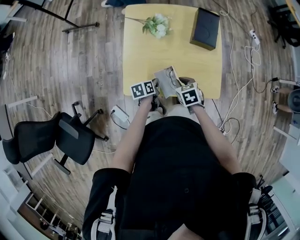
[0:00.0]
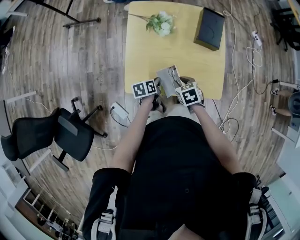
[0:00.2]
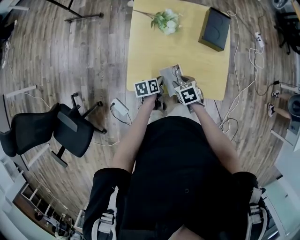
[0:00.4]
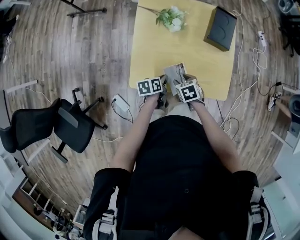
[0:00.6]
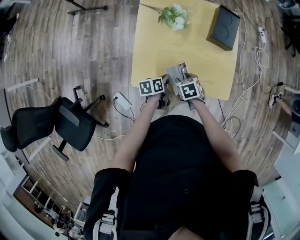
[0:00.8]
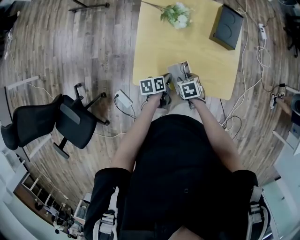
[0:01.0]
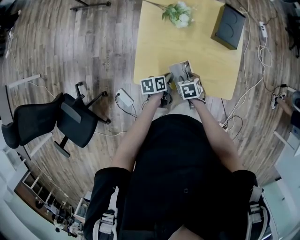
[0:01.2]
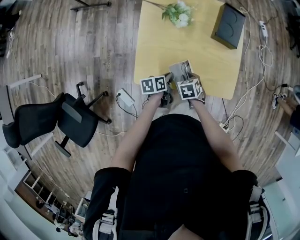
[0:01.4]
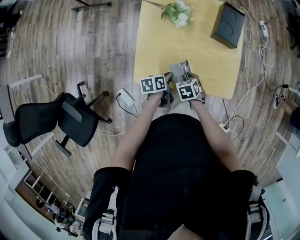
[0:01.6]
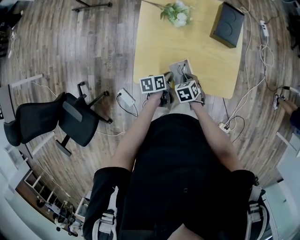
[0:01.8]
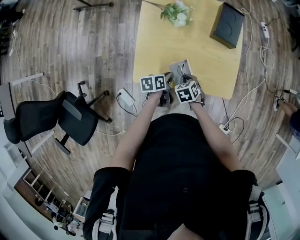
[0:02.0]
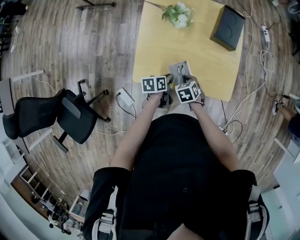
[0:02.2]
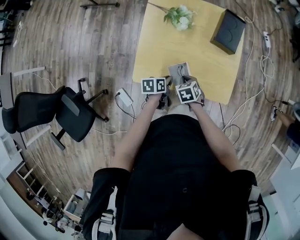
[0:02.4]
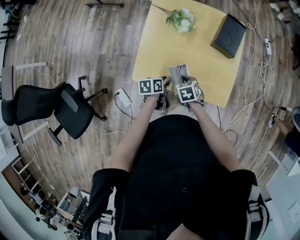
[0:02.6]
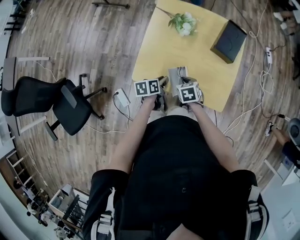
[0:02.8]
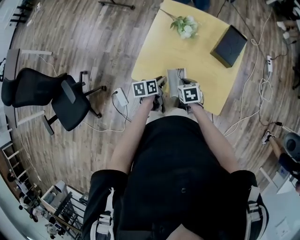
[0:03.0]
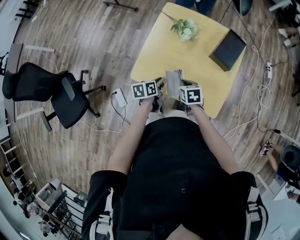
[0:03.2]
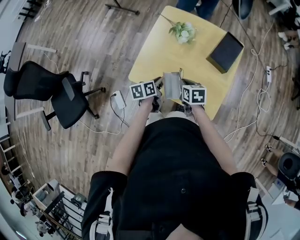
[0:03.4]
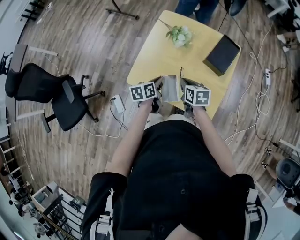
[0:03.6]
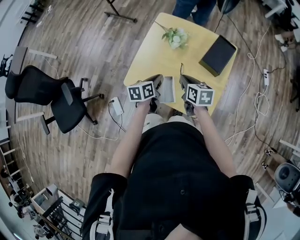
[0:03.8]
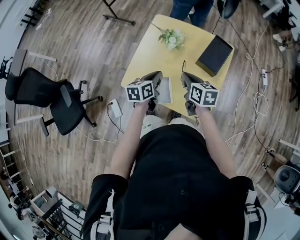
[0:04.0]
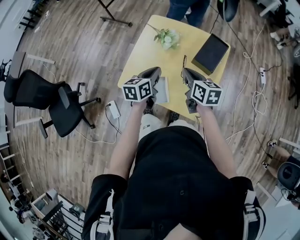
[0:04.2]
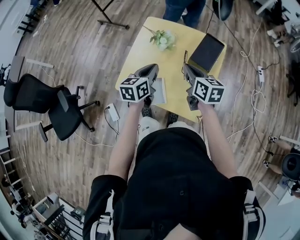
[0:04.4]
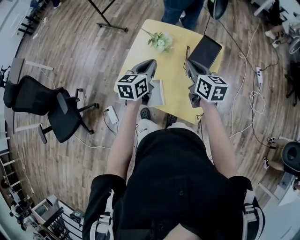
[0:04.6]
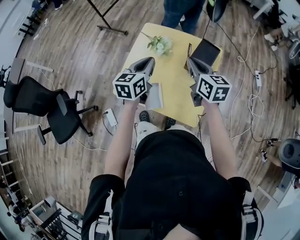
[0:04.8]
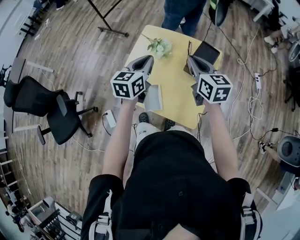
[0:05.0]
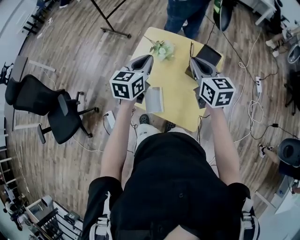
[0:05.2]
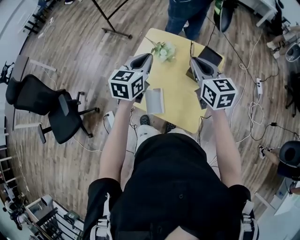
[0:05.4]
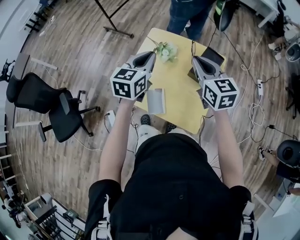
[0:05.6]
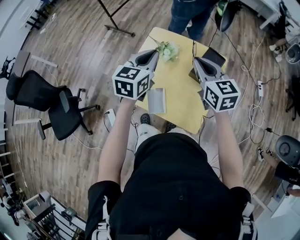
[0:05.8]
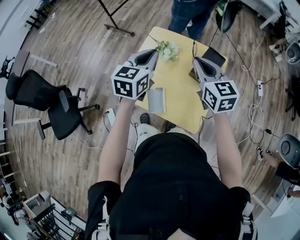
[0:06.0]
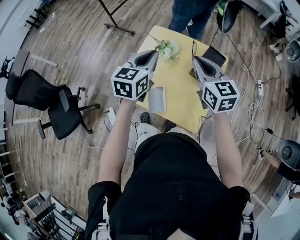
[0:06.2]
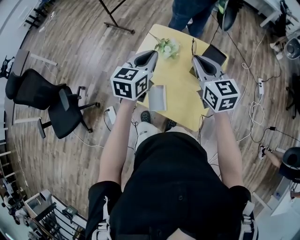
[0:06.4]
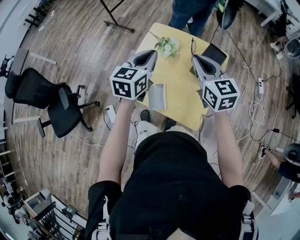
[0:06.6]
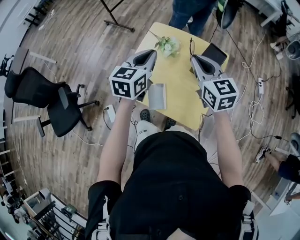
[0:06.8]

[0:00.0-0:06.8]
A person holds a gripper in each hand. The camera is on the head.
0:00.0 to 0:01.4: The right gripper shifts roughly 10 cm downward, and opens and closes again.
0:01.4 to 0:02.8: The right gripper heads upward, covering some 5 cm.
0:02.8 to 0:04.0: Both grippers travel together upward and to the right, some 20 cm. The right gripper swivels about 30 degrees. The left gripper turns by roughly 20 degrees.
0:04.0 to 0:05.4: Both grippers move upward, about 15 cm. The right gripper turns by approximately 30 degrees; the left gripper swivels roughly 30 degrees.
0:05.4 to 0:06.8: The grippers stay close to where they were, moving slightly.

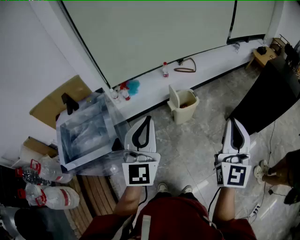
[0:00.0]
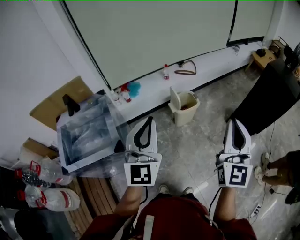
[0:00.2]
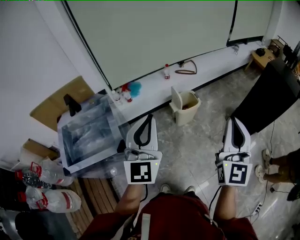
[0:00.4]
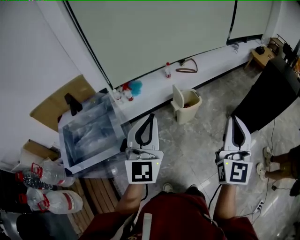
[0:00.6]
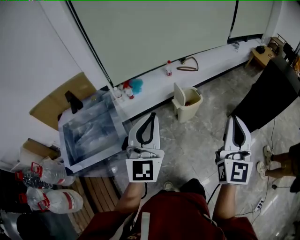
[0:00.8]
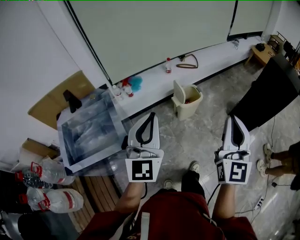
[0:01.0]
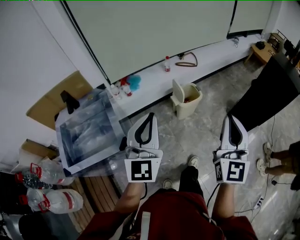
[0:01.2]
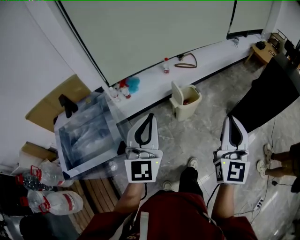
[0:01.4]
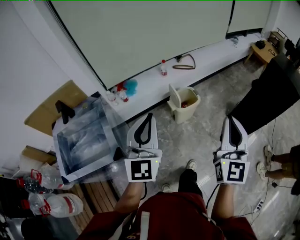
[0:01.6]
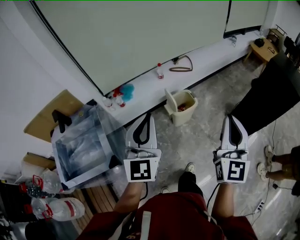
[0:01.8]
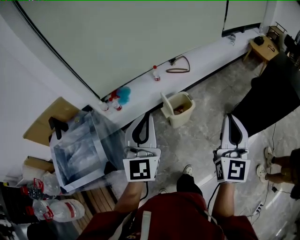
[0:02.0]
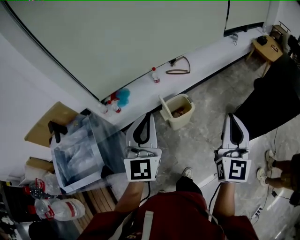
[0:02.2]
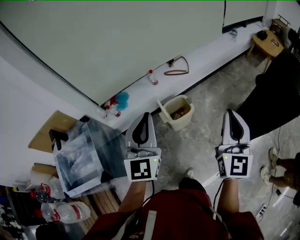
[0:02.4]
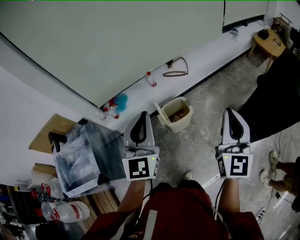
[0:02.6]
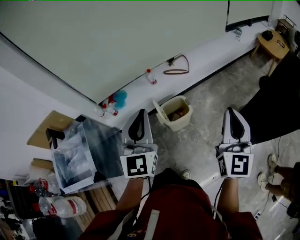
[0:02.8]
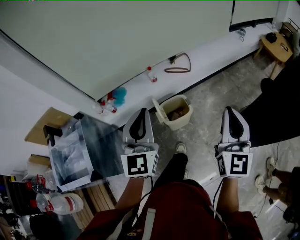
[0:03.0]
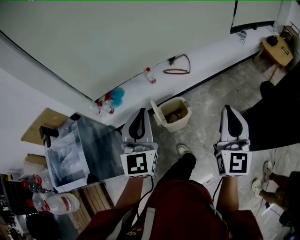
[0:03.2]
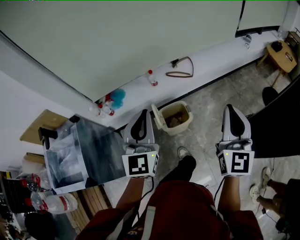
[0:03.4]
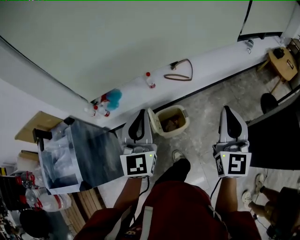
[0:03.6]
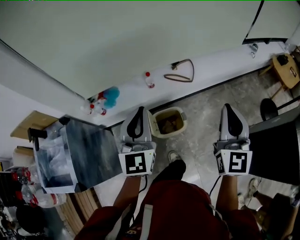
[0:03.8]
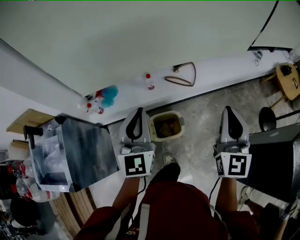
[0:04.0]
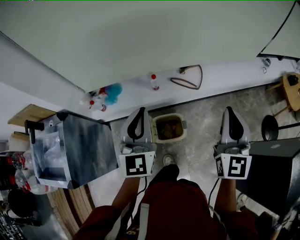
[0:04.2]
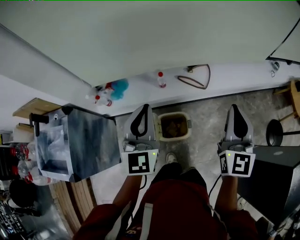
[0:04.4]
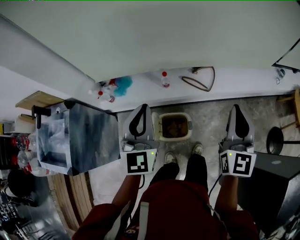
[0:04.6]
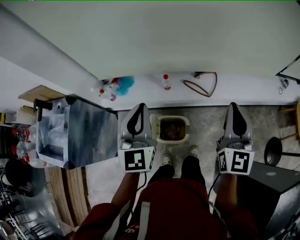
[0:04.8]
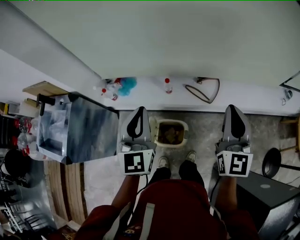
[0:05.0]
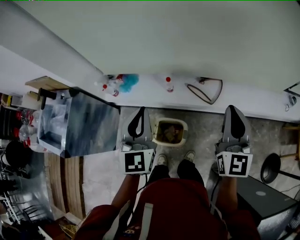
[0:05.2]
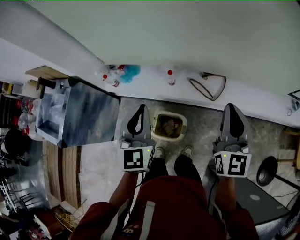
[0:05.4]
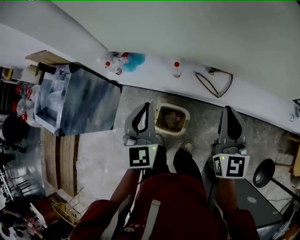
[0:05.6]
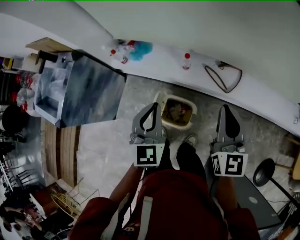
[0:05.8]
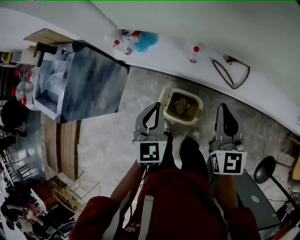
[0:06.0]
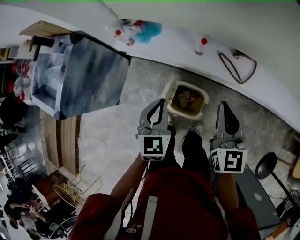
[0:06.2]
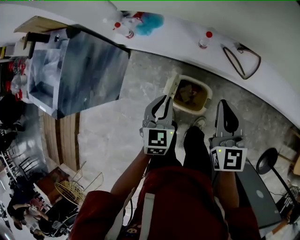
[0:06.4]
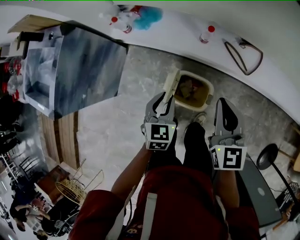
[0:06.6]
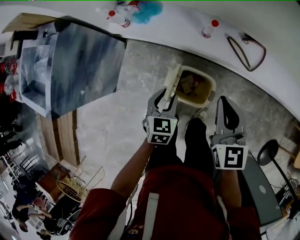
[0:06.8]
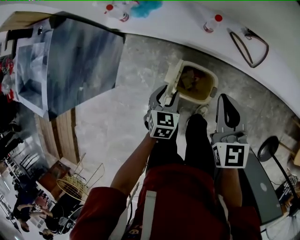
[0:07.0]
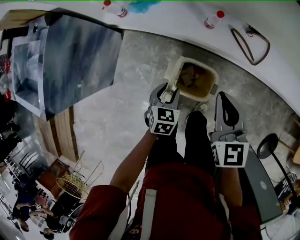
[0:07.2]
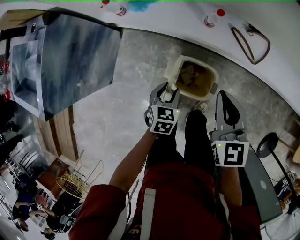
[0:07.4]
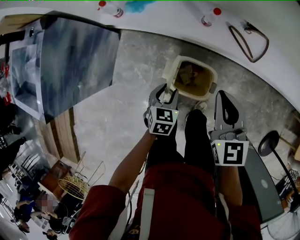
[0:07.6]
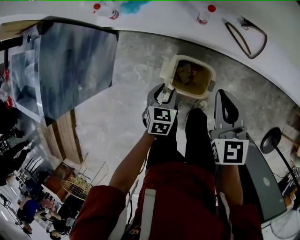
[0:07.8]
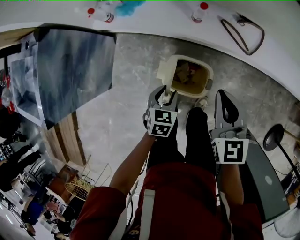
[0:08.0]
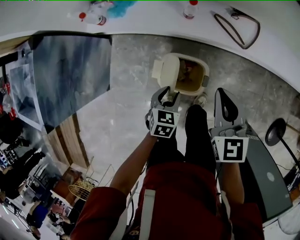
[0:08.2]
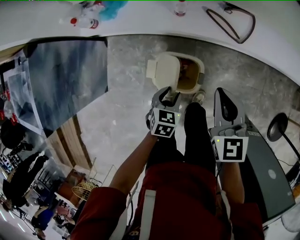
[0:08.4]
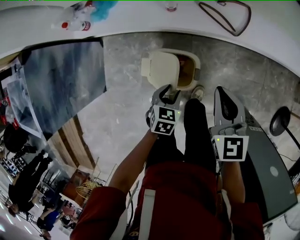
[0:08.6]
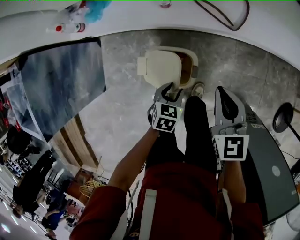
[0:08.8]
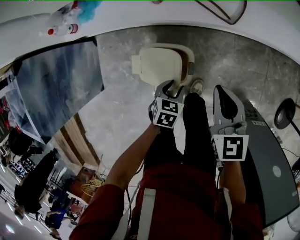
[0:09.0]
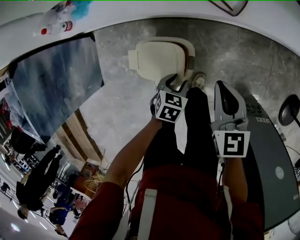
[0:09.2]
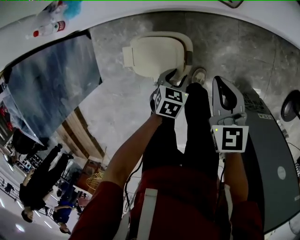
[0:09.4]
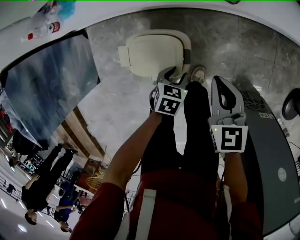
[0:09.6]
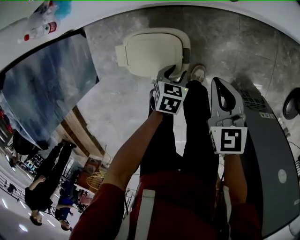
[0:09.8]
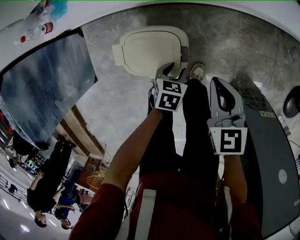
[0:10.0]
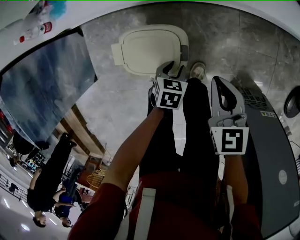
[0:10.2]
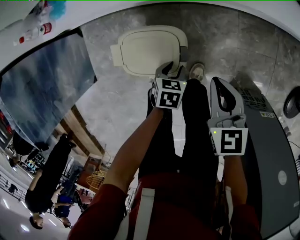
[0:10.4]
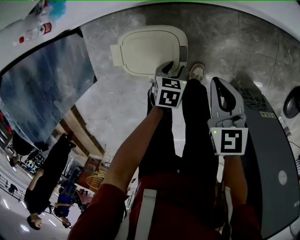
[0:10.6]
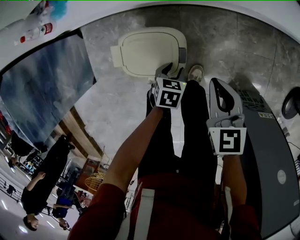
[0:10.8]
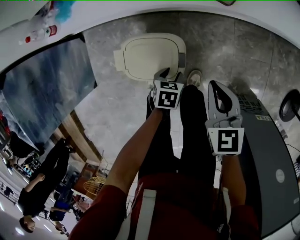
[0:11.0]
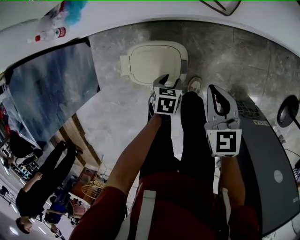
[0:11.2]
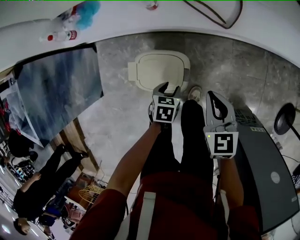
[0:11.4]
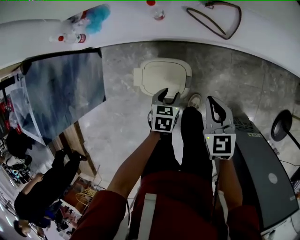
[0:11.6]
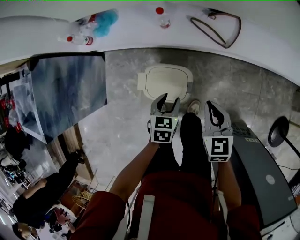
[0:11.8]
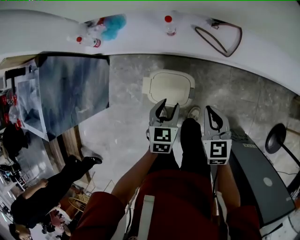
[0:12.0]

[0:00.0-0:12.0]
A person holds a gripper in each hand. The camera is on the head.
0:00.0 to 0:01.6: Both grippers travel together forward, approximately 5 cm.
0:01.6 to 0:03.0: Both grippers move forward and to the right, approximately 30 cm.
0:03.0 to 0:04.4: The grippers both shift forward by approximately 30 cm.
0:04.4 to 0:06.0: The two grippers go approximately 15 cm downward. The left gripper changes its angle by some 30 degrees, while the right gripper turns by roughly 40 degrees.
0:06.0 to 0:07.6: The right gripper goes some 20 cm downward and to the left. Meanwhile the left gripper goes about 30 cm downward, swivels approximately 30 degrees, and opens up.
0:07.6 to 0:09.0: Both grippers move to the right and downward, about 20 cm. The left gripper rotates roughly 20 degrees.
0:09.0 to 0:10.4: Both grippers move downward, roughly 10 cm.
0:10.4 to 0:12.0: The right gripper travels upward and to the left by some 15 cm; the left gripper goes approximately 25 cm upward, and turns by about 30 degrees.

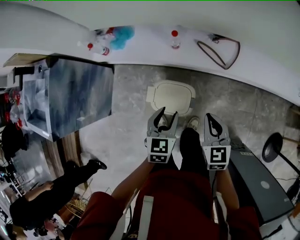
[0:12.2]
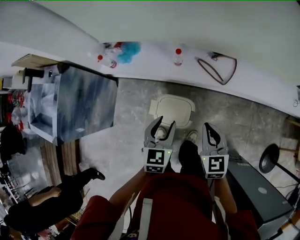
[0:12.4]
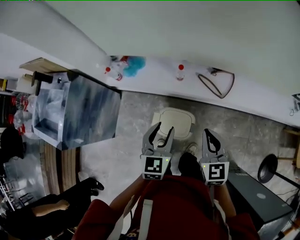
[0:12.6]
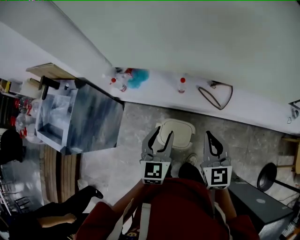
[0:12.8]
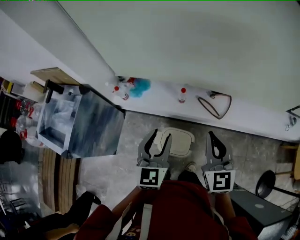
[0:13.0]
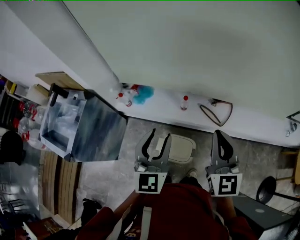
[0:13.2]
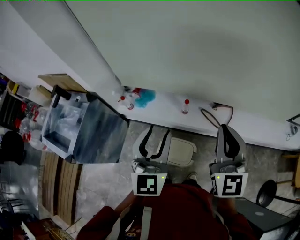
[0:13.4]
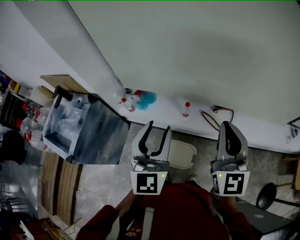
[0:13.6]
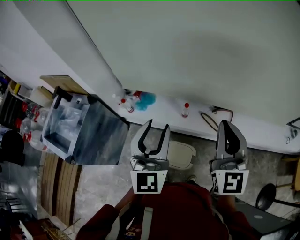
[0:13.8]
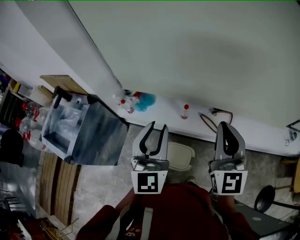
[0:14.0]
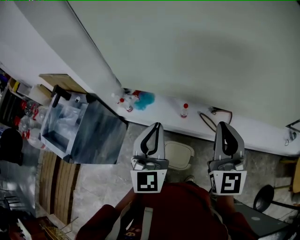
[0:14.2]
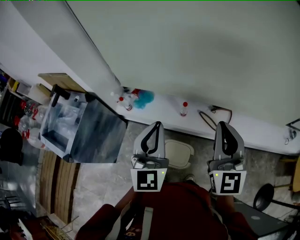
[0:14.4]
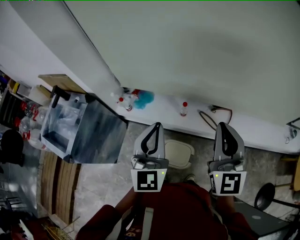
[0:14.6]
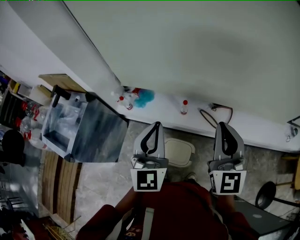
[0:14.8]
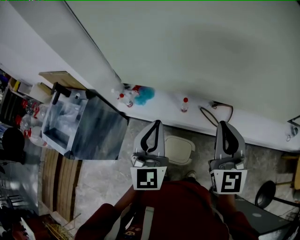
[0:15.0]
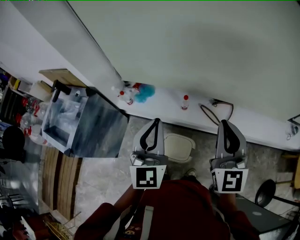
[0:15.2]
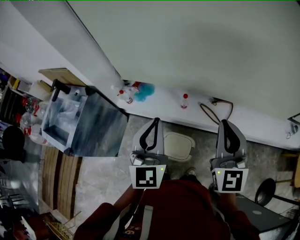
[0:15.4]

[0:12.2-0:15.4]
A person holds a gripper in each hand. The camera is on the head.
0:12.2 to 0:13.8: Both grippers move upward, approximately 40 cm. The left gripper tilts its fingers about 40 degrees upward. The right gripper tips its fingers upward by some 40 degrees.
0:13.8 to 0:15.4: The left gripper closes.

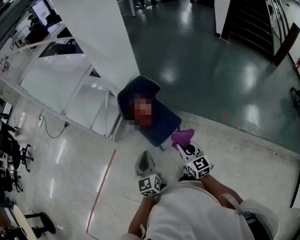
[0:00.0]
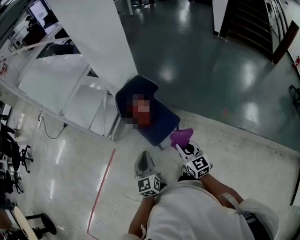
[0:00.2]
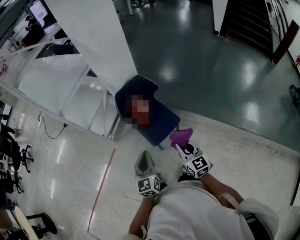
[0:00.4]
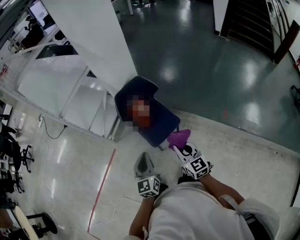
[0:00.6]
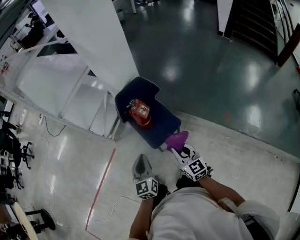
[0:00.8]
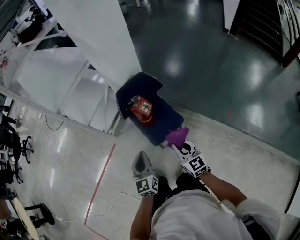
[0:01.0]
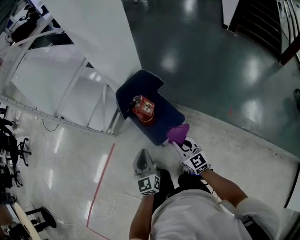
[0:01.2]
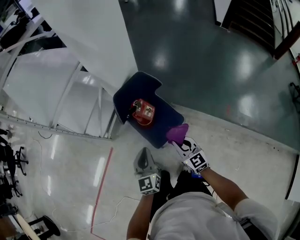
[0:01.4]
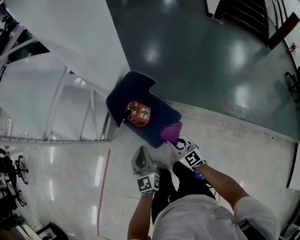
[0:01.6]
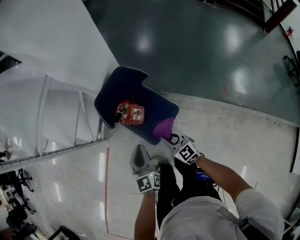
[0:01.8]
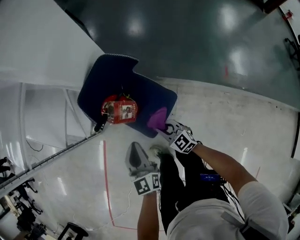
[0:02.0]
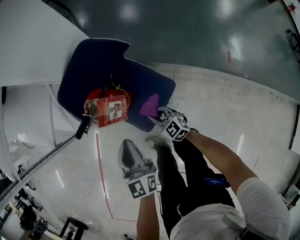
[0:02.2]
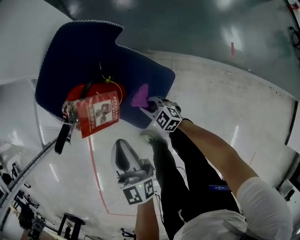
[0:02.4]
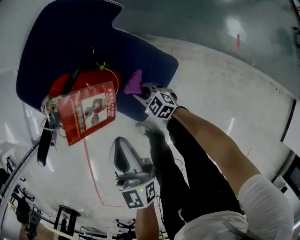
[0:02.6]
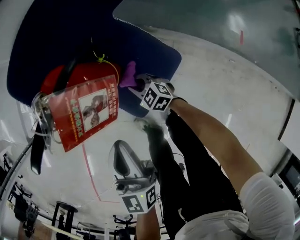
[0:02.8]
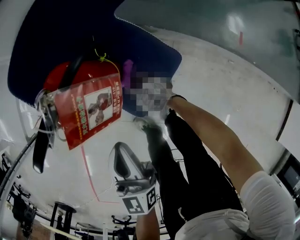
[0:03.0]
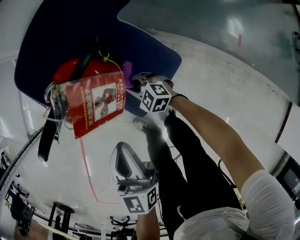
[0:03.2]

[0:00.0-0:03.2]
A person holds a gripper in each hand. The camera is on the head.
0:00.0 to 0:01.6: The right gripper travels forward and downward by roughly 20 cm, while the left gripper travels forward by some 15 cm.
0:01.6 to 0:03.2: The right gripper travels downward by about 40 cm, and turns by roughly 40 degrees. Meanwhile the left gripper goes some 20 cm downward.
